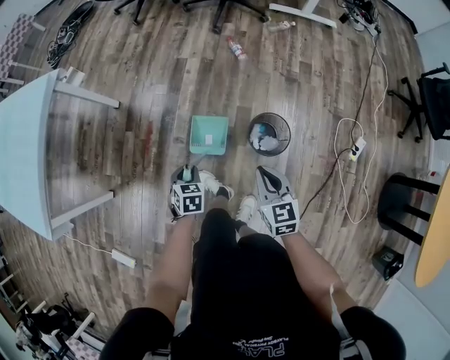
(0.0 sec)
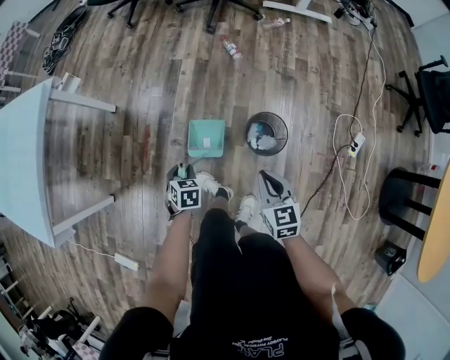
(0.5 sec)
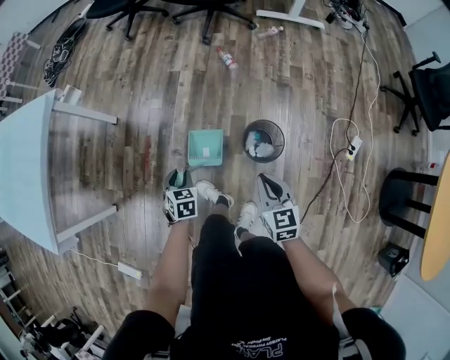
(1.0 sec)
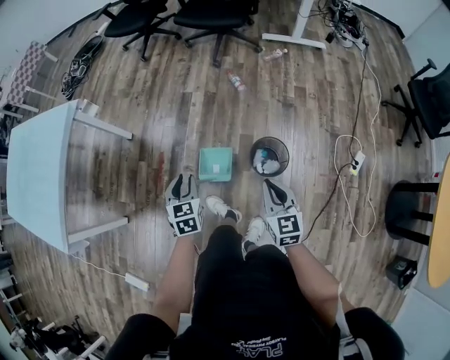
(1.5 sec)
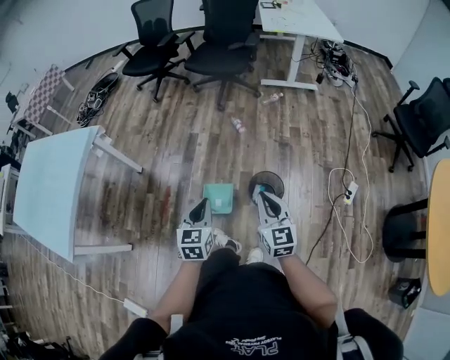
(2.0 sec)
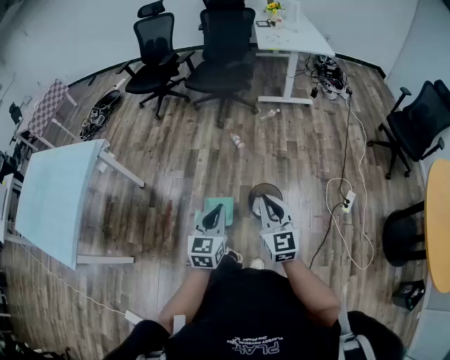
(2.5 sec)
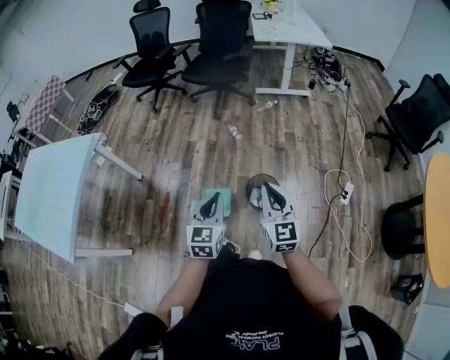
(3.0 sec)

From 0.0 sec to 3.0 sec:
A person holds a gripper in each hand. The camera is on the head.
From 0.0 sec to 1.5 sec: The left gripper is displaced upward by roughly 15 cm, and turns by roughly 20 degrees, while the right gripper goes about 5 cm upward.
From 1.5 sec to 3.0 sec: The right gripper is displaced upward by roughly 15 cm, and rotates some 20 degrees. Meanwhile the left gripper shifts about 25 cm upward, to the right and backward, swivels some 30 degrees, and closes up.

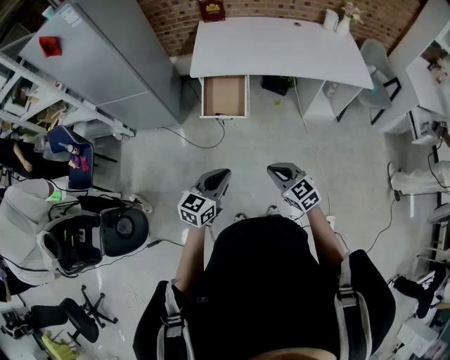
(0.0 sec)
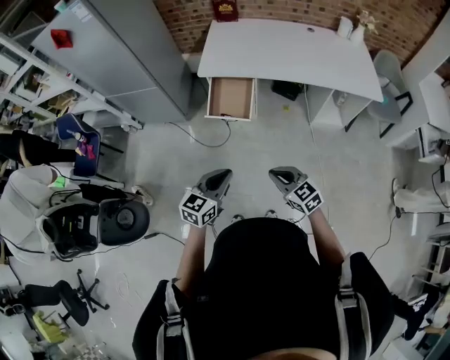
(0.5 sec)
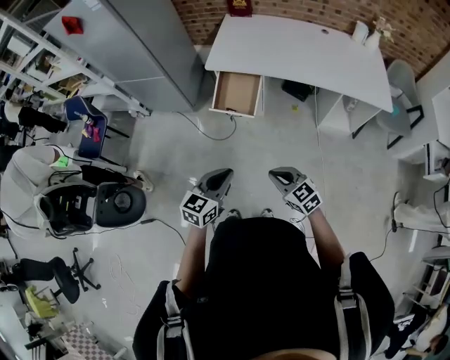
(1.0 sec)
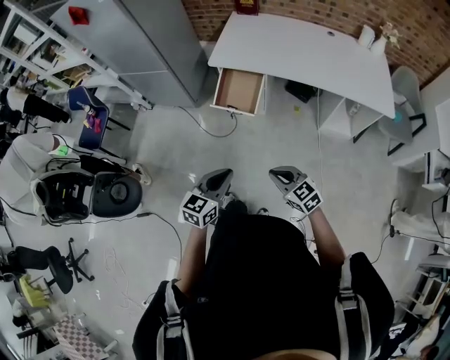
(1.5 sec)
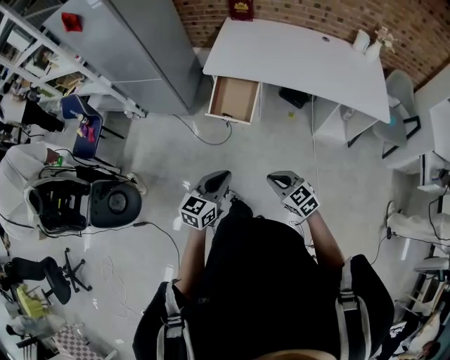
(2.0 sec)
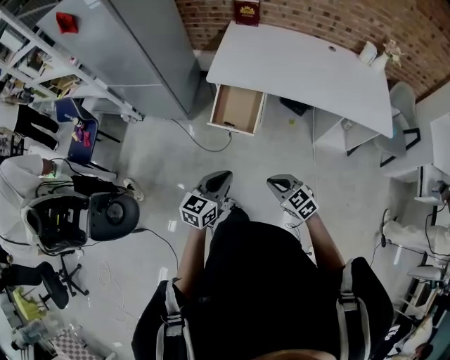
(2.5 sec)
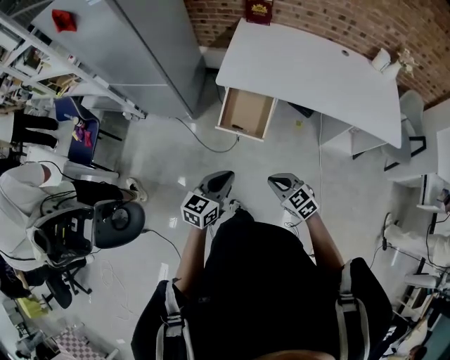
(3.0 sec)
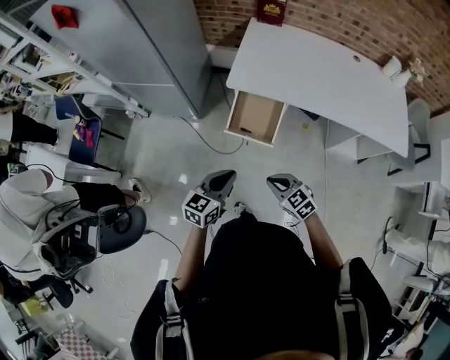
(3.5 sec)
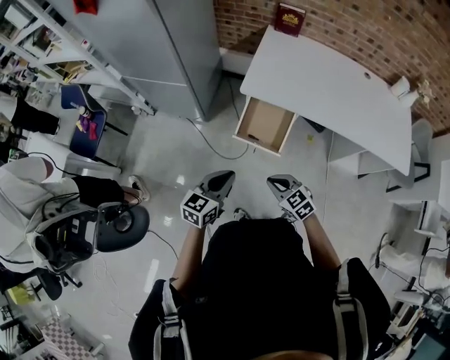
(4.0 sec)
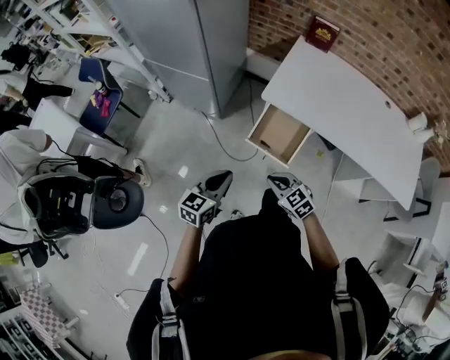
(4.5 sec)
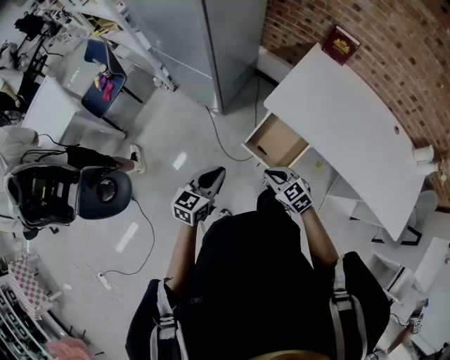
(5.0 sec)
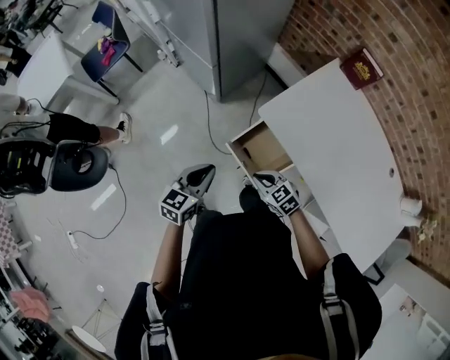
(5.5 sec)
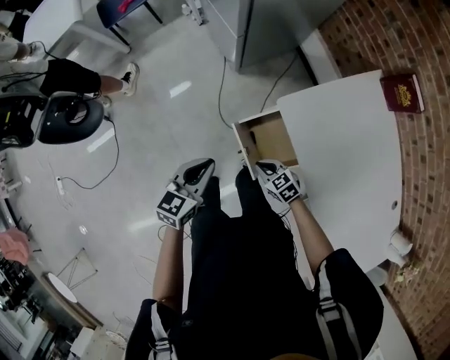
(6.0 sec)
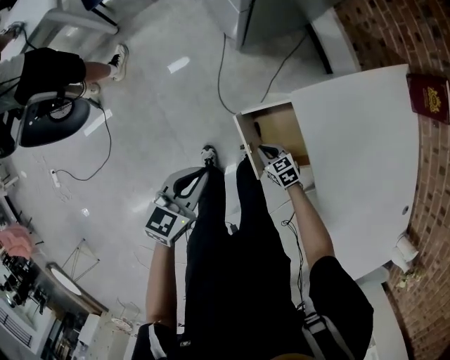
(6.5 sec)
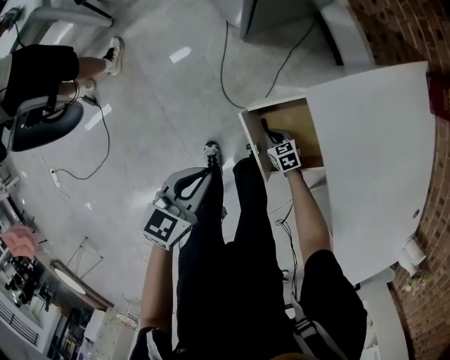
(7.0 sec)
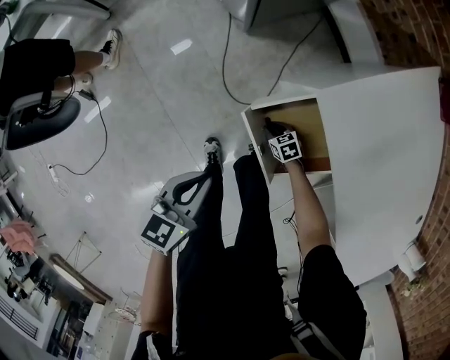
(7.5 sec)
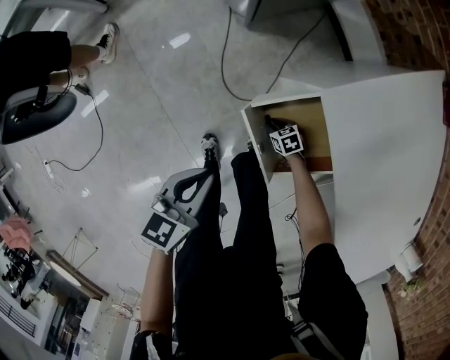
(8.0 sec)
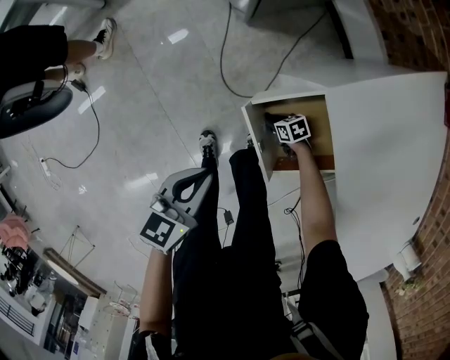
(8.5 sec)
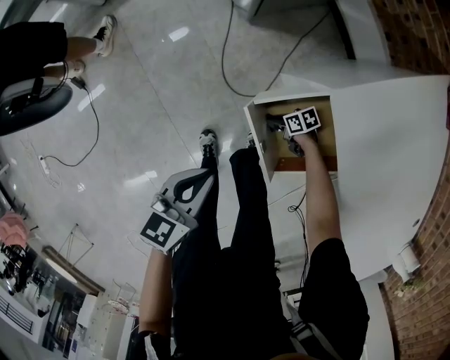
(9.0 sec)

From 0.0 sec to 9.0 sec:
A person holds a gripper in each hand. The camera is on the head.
From 0.0 sec to 2.0 sec: The two grippers go approximately 10 cm to the right.
From 2.0 sec to 4.5 sec: Both grippers travel together forward and to the left, roughly 30 cm.
From 4.5 sec to 7.0 sec: The left gripper heads downward, covering some 15 cm, and rotates roughly 40 degrees. Meanwhile the right gripper shifts approximately 40 cm downward, and rotates roughly 30 degrees.
From 7.0 sec to 9.0 sec: Both grippers move downward, some 5 cm. The right gripper rotates about 40 degrees.

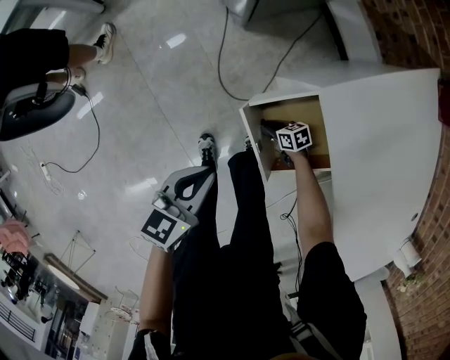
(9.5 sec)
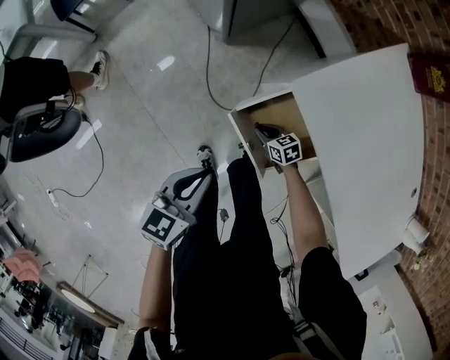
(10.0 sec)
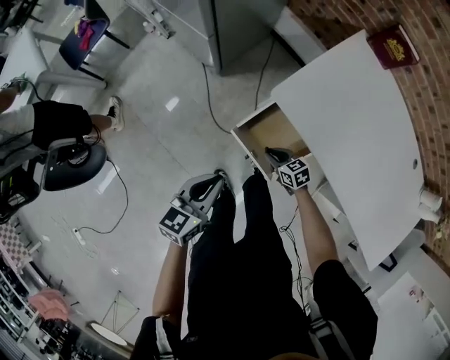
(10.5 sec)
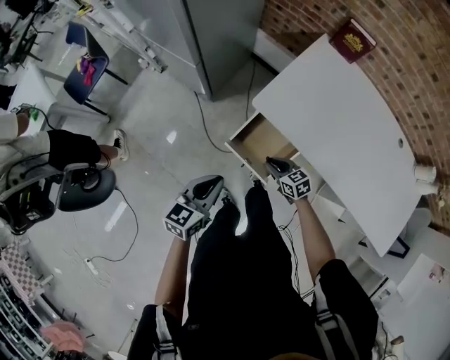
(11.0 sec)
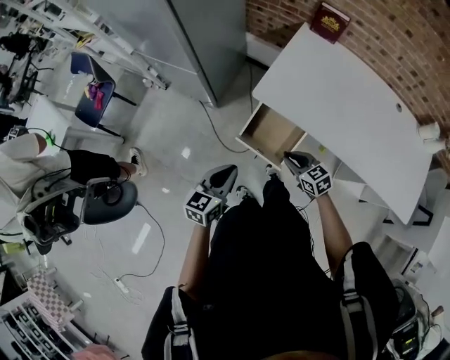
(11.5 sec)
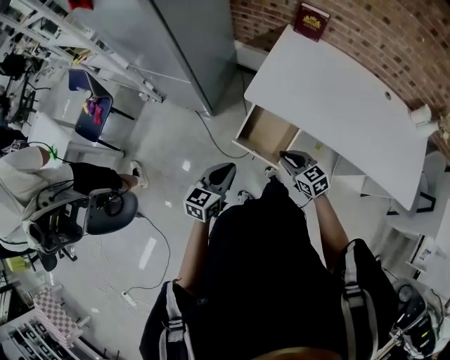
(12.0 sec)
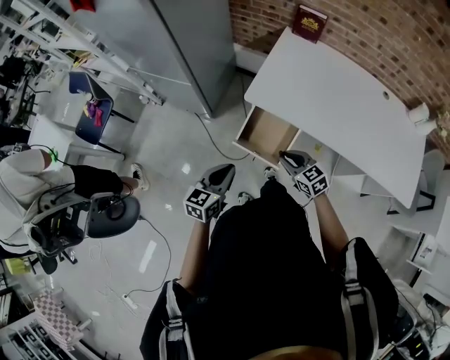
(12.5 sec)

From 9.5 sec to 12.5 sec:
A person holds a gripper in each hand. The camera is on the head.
From 9.5 sec to 11.0 sec: The left gripper travels upward by roughly 15 cm, and turns by about 30 degrees, while the right gripper travels upward by about 30 cm, and swivels some 40 degrees.
From 11.0 sec to 12.5 sec: The right gripper travels upward and backward by about 15 cm.

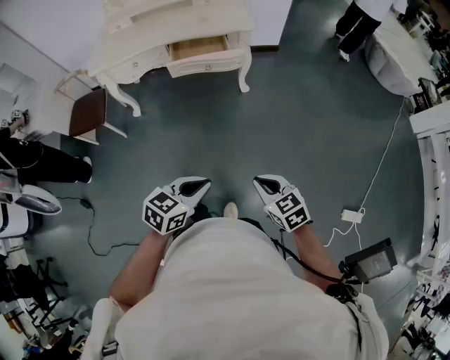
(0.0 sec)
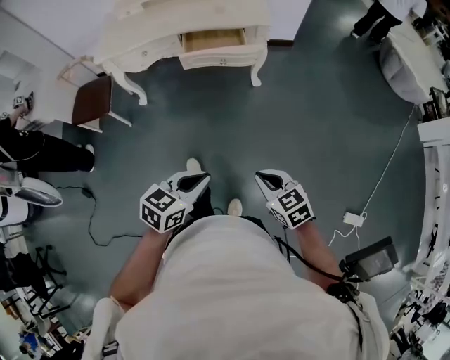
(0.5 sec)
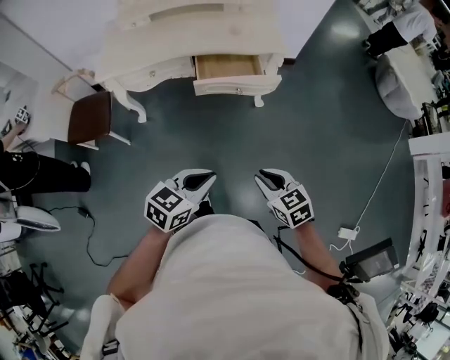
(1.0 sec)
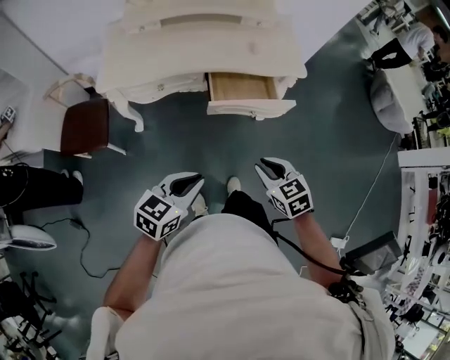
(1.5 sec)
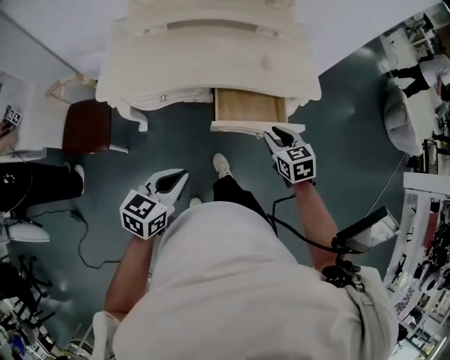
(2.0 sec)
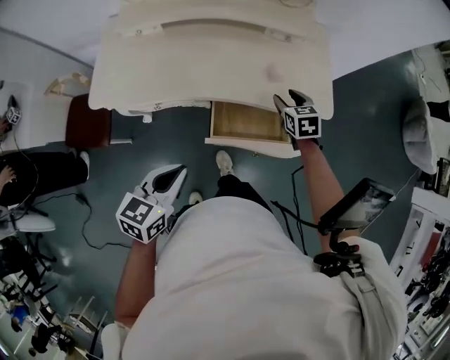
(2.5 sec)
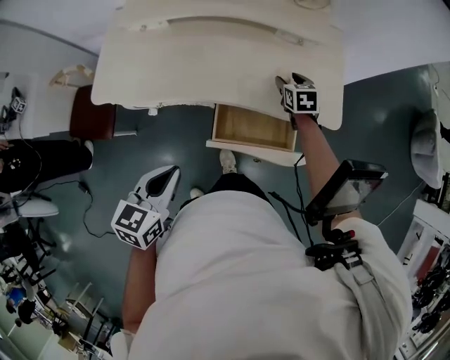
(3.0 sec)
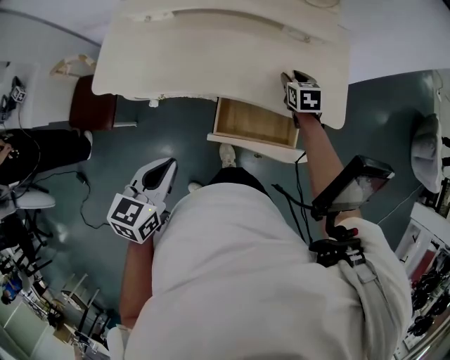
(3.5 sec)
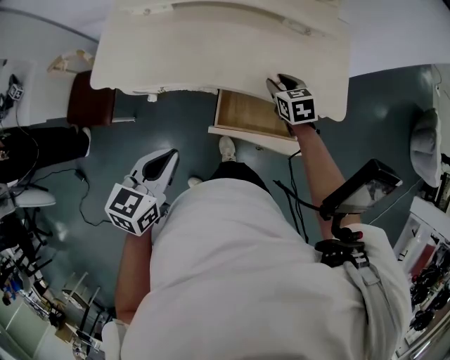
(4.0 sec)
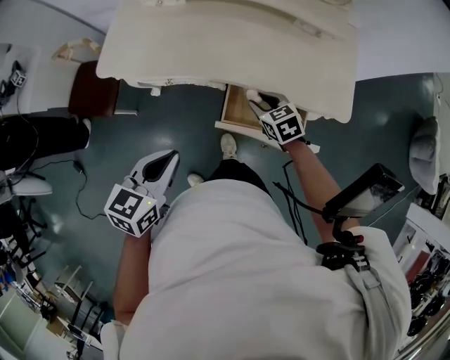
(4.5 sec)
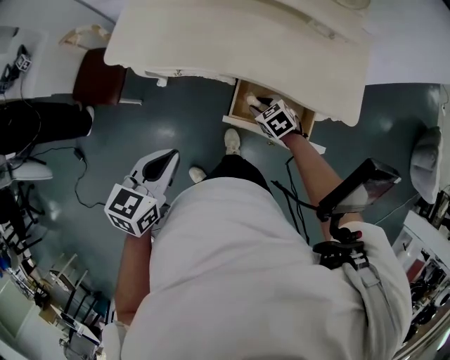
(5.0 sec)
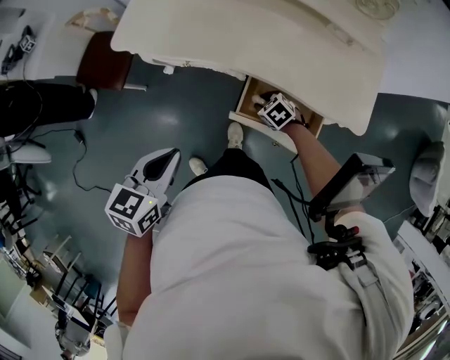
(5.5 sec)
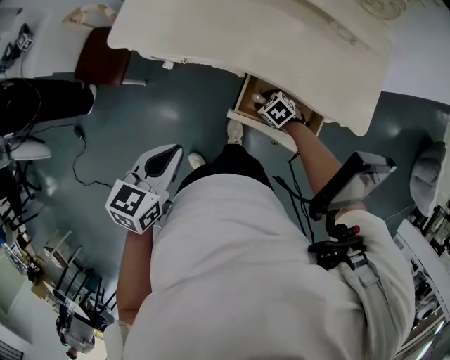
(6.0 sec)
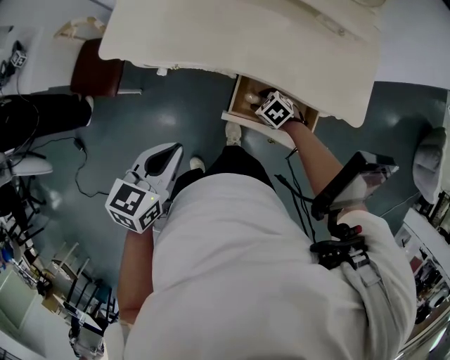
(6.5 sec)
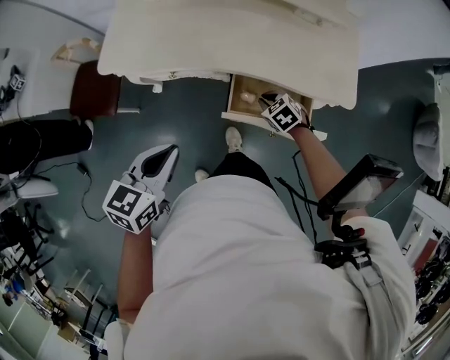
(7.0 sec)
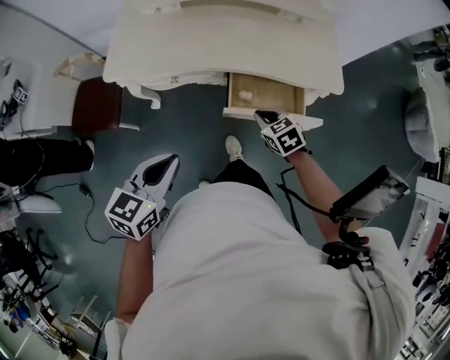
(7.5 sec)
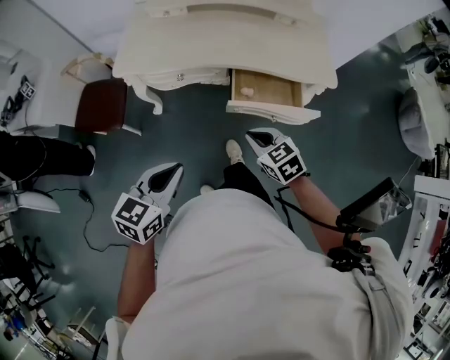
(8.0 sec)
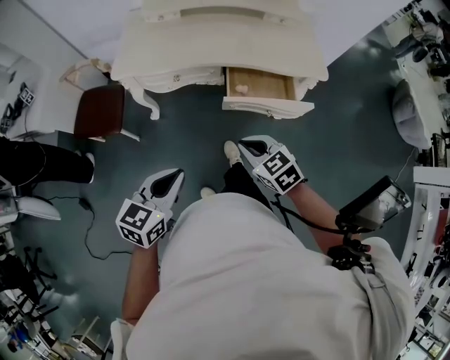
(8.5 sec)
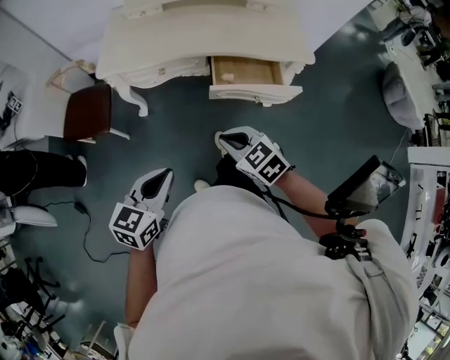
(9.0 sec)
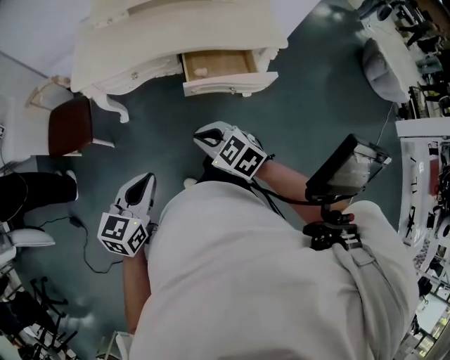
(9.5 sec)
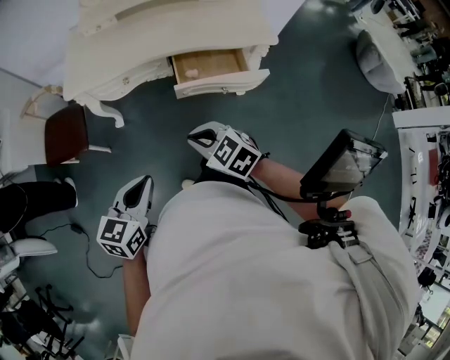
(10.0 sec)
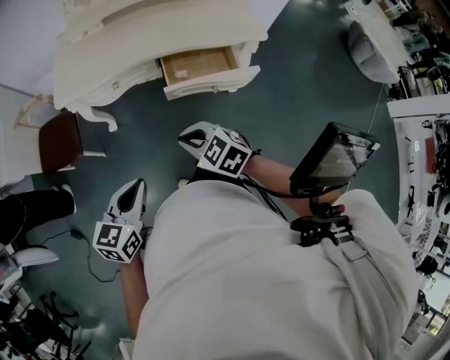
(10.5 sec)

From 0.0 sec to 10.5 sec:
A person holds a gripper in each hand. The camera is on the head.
From 0.0 sec to 2.0 sec: The pair of grippers is taken forward and to the left, roughly 60 cm. The right gripper opens.
From 2.0 sec to 4.0 sec: The left gripper is displaced forward by approximately 15 cm, while the right gripper is displaced forward by some 25 cm, and opens and closes again.
From 4.0 sec to 6.5 sec: The right gripper is displaced downward by roughly 15 cm, and changes its angle by approximately 40 degrees.
From 6.5 sec to 8.5 sec: The right gripper moves backward, upward and to the left, about 40 cm, swivels roughly 30 degrees, and closes up, while the left gripper shifts some 25 cm backward and to the left, and swivels about 20 degrees.
From 8.5 sec to 10.5 sec: The grippers stay close to where they were, moving slightly.
